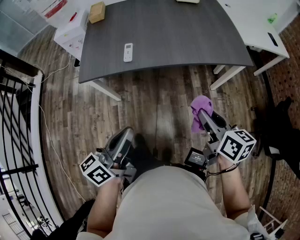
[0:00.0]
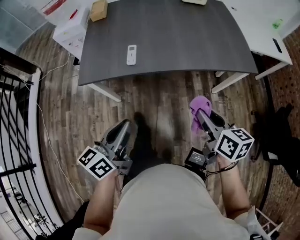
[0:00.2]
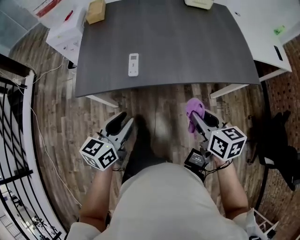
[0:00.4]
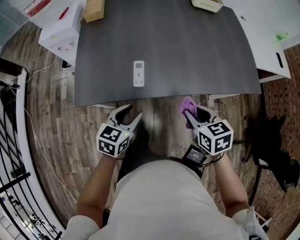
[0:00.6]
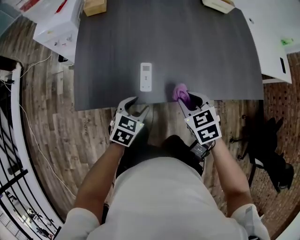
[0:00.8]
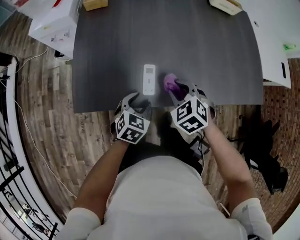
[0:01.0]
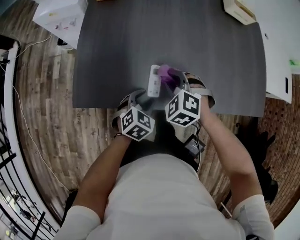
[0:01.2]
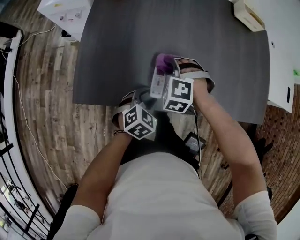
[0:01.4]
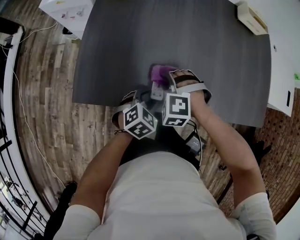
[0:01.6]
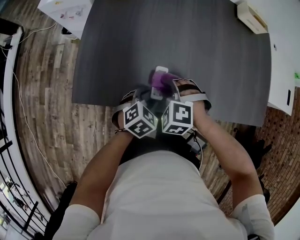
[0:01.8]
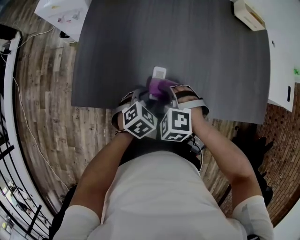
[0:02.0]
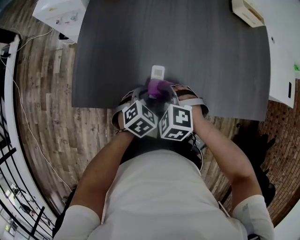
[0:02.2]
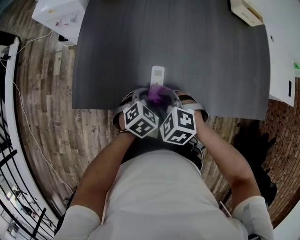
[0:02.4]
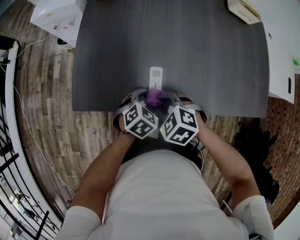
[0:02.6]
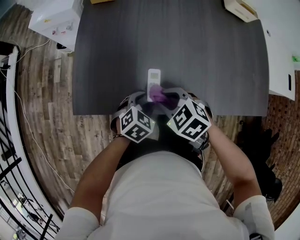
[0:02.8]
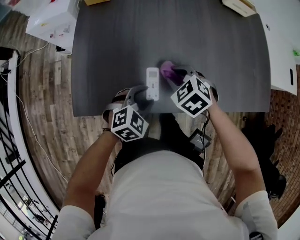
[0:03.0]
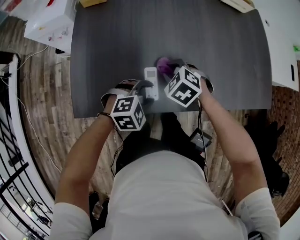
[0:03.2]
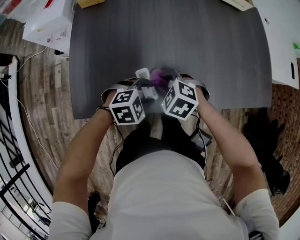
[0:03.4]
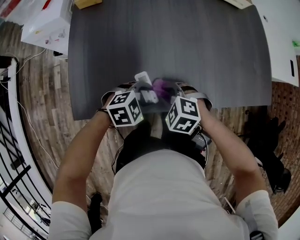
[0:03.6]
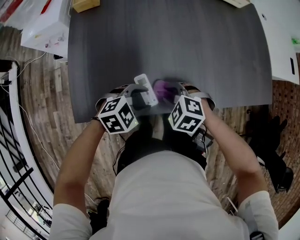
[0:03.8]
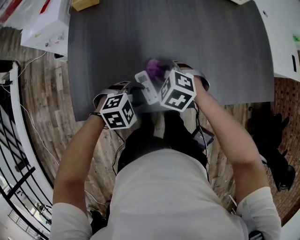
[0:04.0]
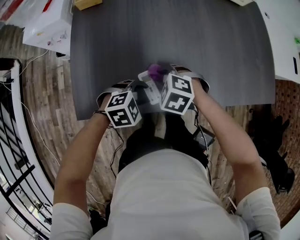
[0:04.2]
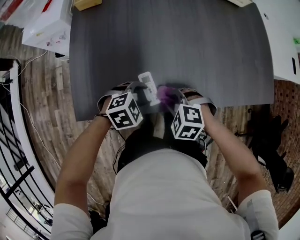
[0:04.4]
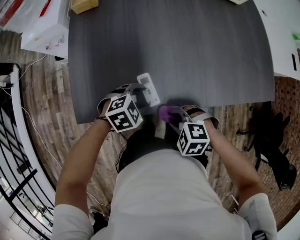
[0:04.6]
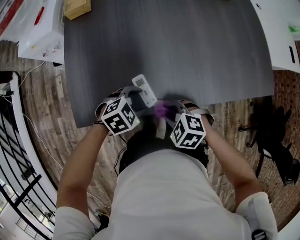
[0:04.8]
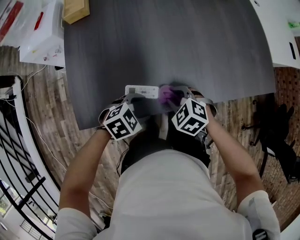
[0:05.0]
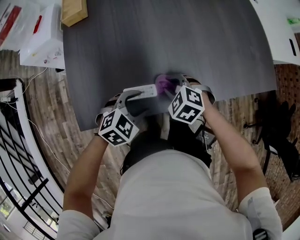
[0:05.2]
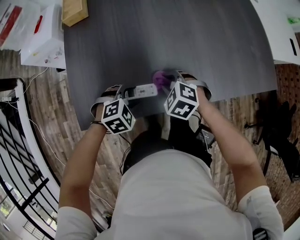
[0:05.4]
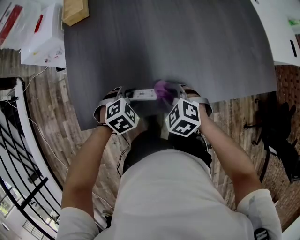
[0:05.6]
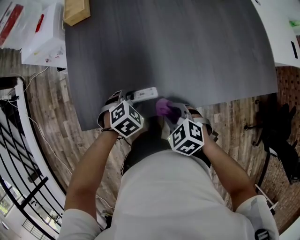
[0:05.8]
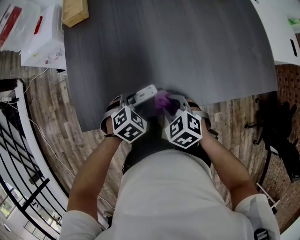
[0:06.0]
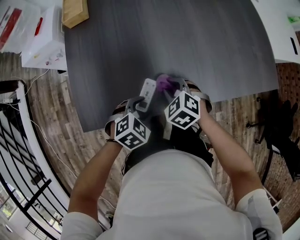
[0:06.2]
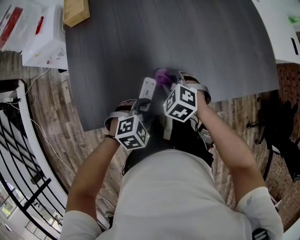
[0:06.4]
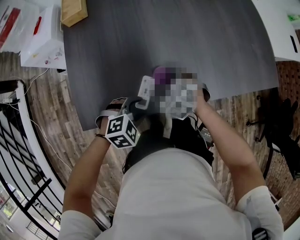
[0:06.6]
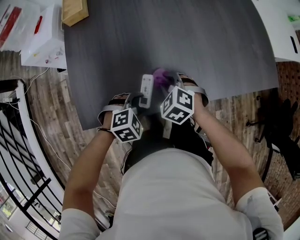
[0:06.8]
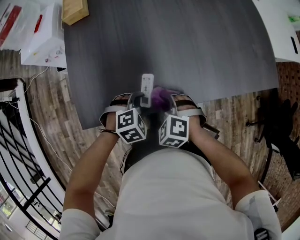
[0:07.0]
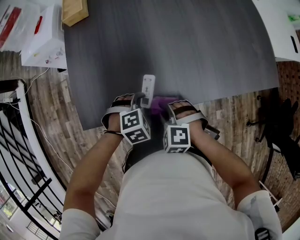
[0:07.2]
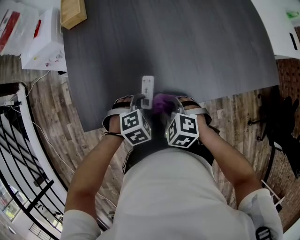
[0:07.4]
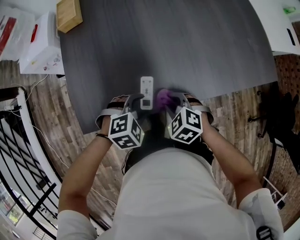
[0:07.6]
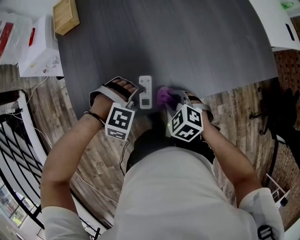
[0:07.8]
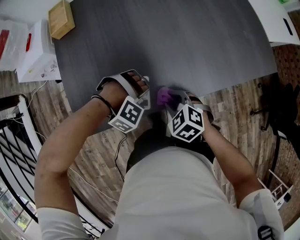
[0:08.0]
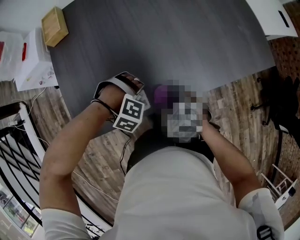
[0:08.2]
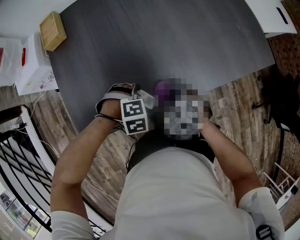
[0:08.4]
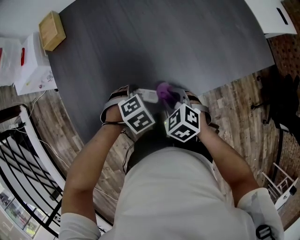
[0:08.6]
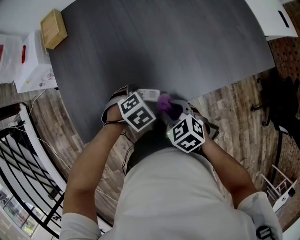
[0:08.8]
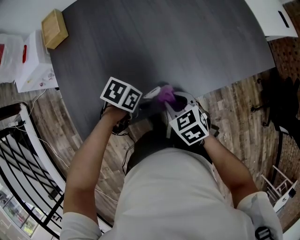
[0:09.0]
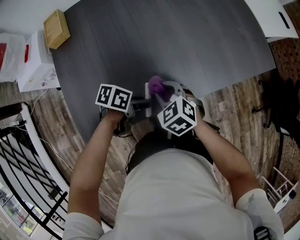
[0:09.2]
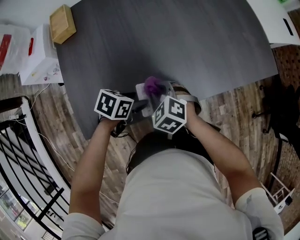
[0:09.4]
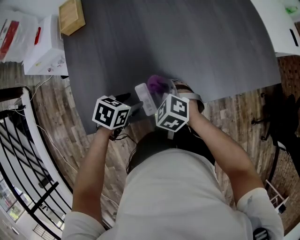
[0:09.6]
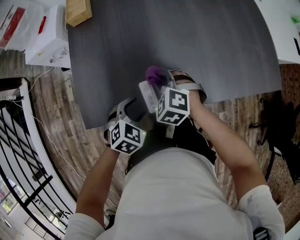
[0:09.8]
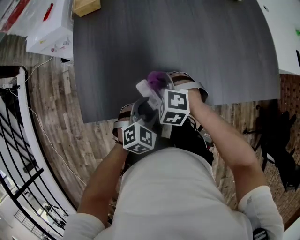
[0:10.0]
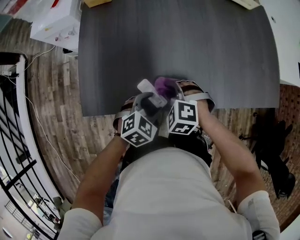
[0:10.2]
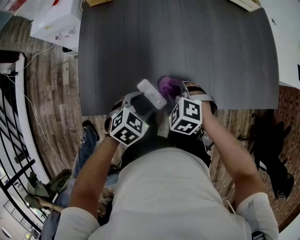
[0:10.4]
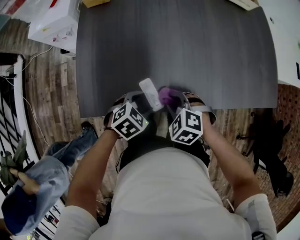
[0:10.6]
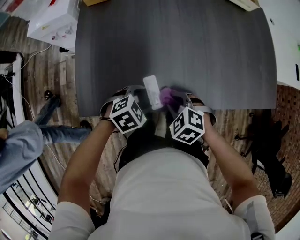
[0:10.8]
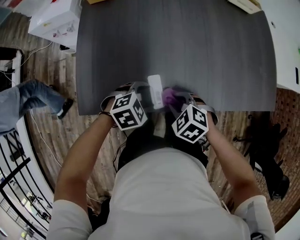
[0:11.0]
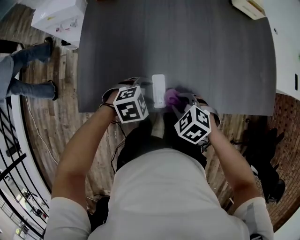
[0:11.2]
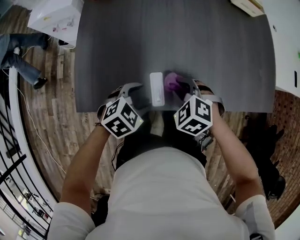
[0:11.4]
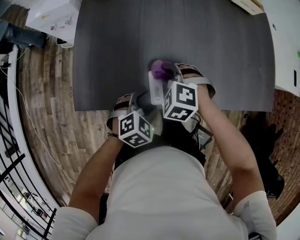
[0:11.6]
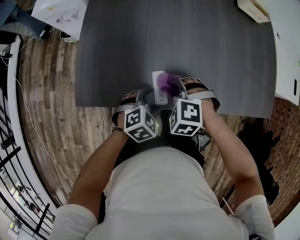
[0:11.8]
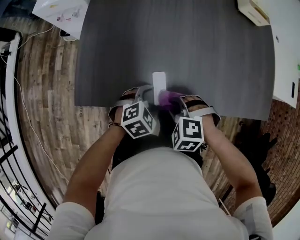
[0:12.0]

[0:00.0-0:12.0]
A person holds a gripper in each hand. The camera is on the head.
0:00.0 to 0:01.6: The right gripper shifts approximately 50 cm to the left, forward and downward, and rotates around the line of its fingers by about 110 degrees, counterclockwise from behind. The left gripper is displaced forward and downward by about 40 cm, points its fingers some 50 degrees further downward, and opens.
0:01.6 to 0:03.0: The right gripper heads to the right, covering some 5 cm, goes backward and returns, some 10 cm each way, and twists roughly 40 degrees clockwise, seen from behind, while the left gripper swivels some 20 degrees.
0:03.0 to 0:04.4: The right gripper ends up approximately 10 cm from where it was, and swivels roughly 20 degrees. The left gripper rotates approximately 20 degrees.
0:04.4 to 0:06.0: The left gripper rotates roughly 20 degrees. The right gripper rotates about 30 degrees.
0:06.0 to 0:07.6: The right gripper goes forward and backward, approximately 15 cm each way, reversing 2 times; the left gripper moves roughly 5 cm, and changes its angle by approximately 30 degrees.
0:07.6 to 0:09.0: The right gripper changes place by some 5 cm, and rotates some 30 degrees, while the left gripper changes place by about 5 cm, and rolls counterclockwise, seen from behind, by roughly 50 degrees.
0:09.0 to 0:10.4: The right gripper shifts by roughly 10 cm, and twists approximately 50 degrees counterclockwise, seen from behind; the left gripper shifts by about 10 cm, and rotates some 40 degrees.
0:10.4 to 0:12.0: The right gripper moves roughly 5 cm, and turns by approximately 20 degrees.

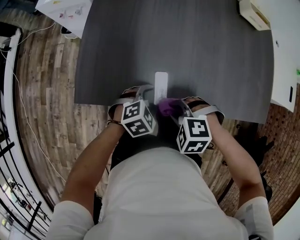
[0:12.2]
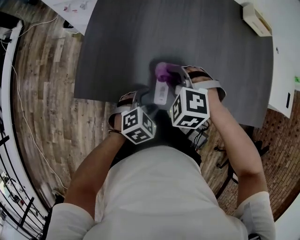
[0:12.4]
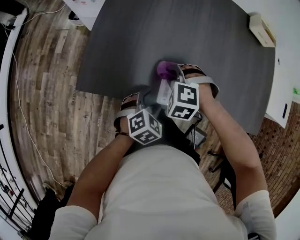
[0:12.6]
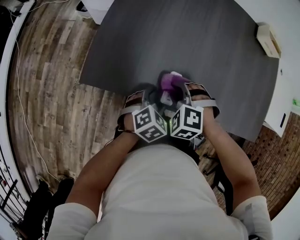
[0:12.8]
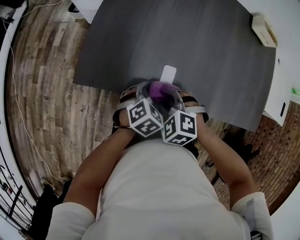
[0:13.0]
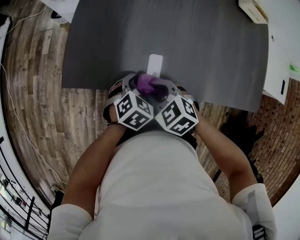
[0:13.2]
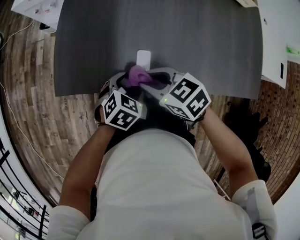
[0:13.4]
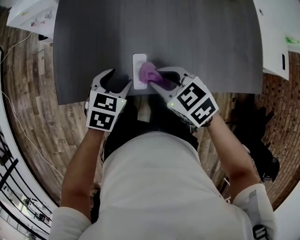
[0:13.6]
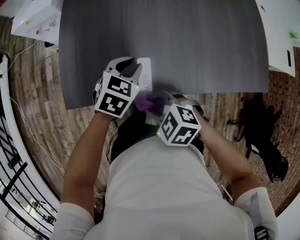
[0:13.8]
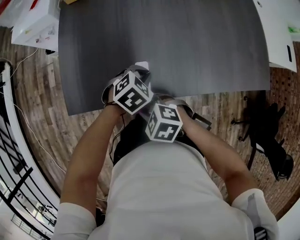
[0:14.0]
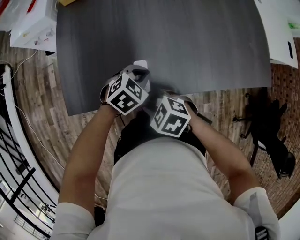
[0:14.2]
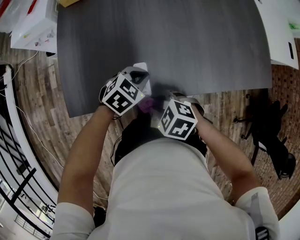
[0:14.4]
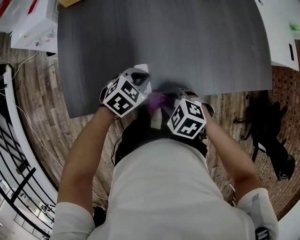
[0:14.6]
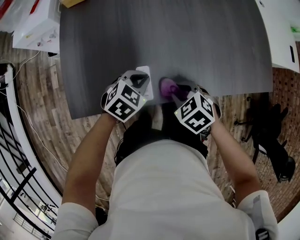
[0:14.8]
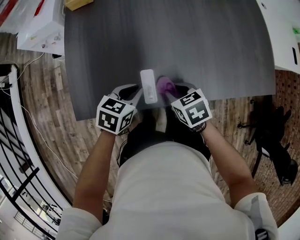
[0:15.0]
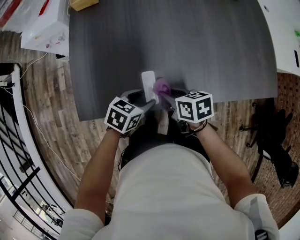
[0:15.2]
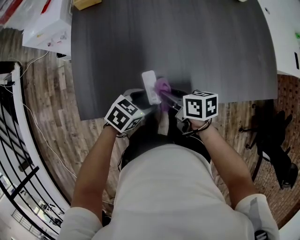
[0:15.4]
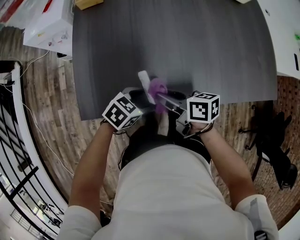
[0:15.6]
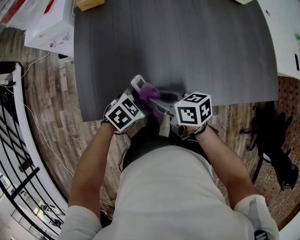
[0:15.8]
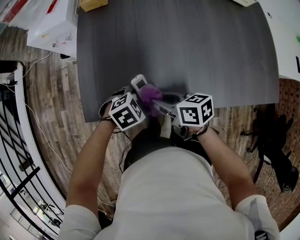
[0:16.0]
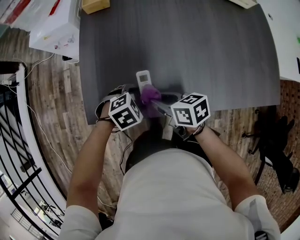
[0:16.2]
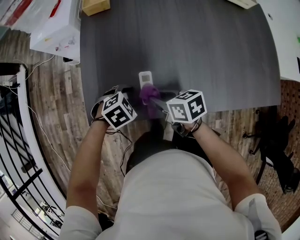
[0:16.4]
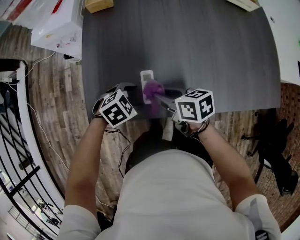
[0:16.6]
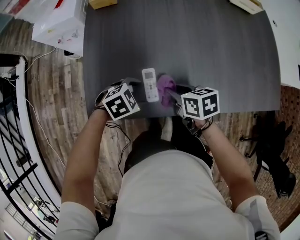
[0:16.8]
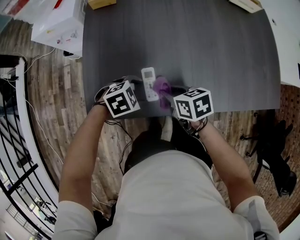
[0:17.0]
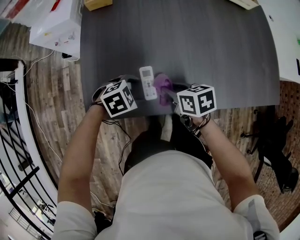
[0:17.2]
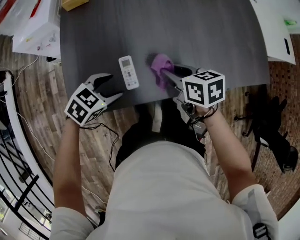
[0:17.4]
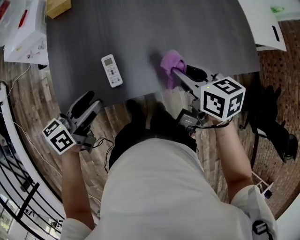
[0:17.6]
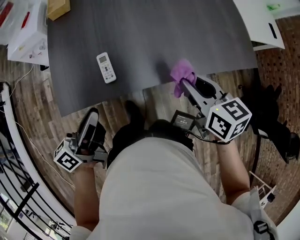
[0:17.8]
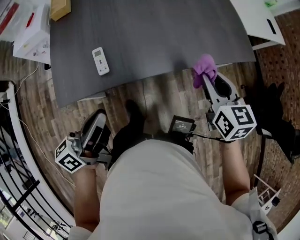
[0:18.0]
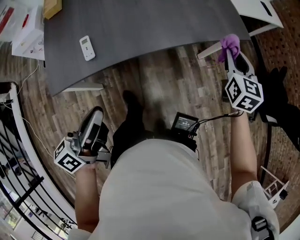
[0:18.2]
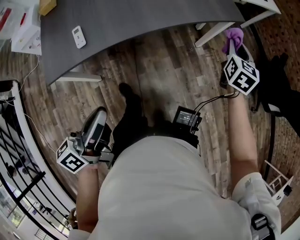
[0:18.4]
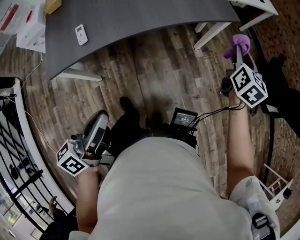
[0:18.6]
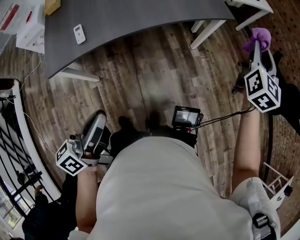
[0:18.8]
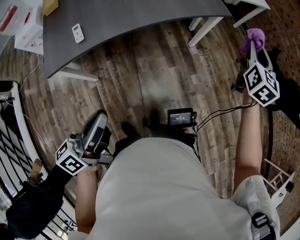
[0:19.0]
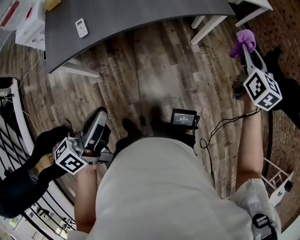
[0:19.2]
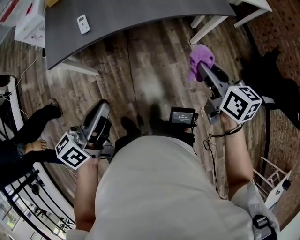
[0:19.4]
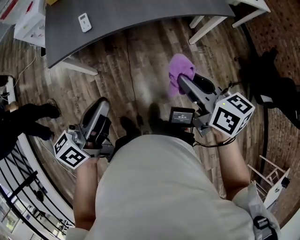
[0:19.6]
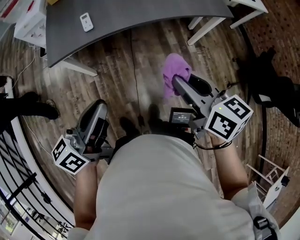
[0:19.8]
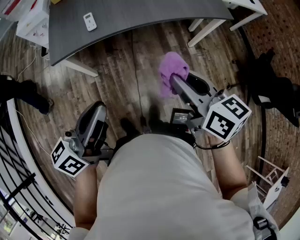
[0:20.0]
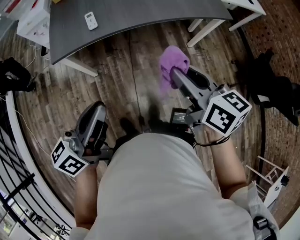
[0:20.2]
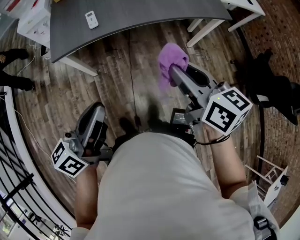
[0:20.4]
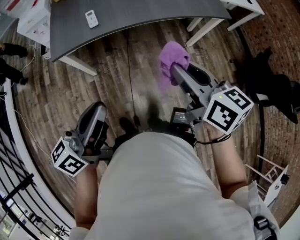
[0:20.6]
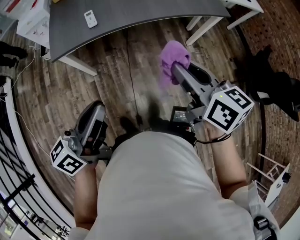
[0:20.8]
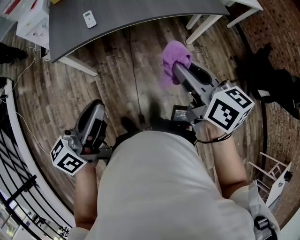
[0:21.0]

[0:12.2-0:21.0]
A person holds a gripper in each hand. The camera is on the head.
0:12.2 to 0:13.6: The left gripper ends up roughly 10 cm from where it was, and swivels some 30 degrees. The right gripper rolls clockwise, seen from behind, by some 40 degrees.
0:13.6 to 0:15.2: The left gripper rotates roughly 20 degrees, and closes, then opens again. Meanwhile the right gripper is displaced downward by approximately 10 cm, and rolls clockwise, seen from behind, by some 50 degrees.
0:15.2 to 0:16.6: The right gripper moves some 10 cm; the left gripper moves roughly 10 cm, and turns by some 40 degrees.
0:16.6 to 0:18.0: The right gripper shifts by roughly 40 cm, and turns by roughly 50 degrees, while the left gripper moves upward, roughly 25 cm, angles its fingers upward, by some 70 degrees, and closes up.
0:18.0 to 0:19.6: The left gripper moves roughly 20 cm; the right gripper moves up and down over some 15 cm, changing direction 2 times, and changes its angle by roughly 30 degrees.
0:19.6 to 0:21.0: The left gripper moves about 5 cm. The right gripper shifts by approximately 5 cm.

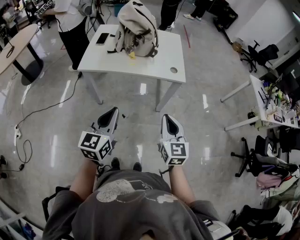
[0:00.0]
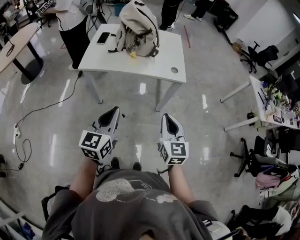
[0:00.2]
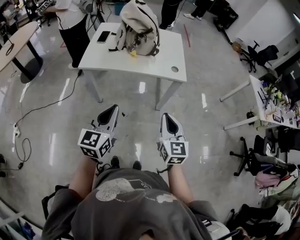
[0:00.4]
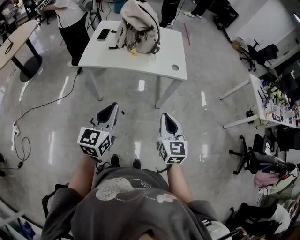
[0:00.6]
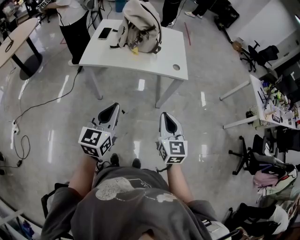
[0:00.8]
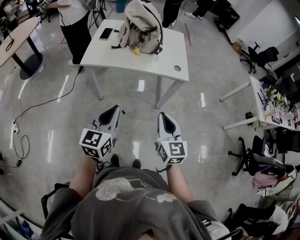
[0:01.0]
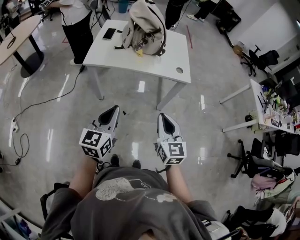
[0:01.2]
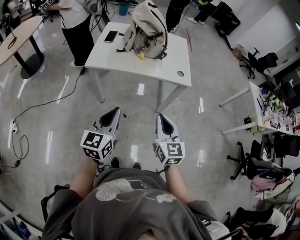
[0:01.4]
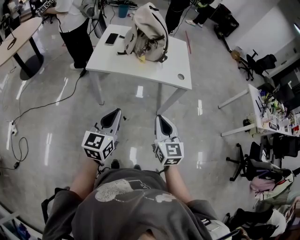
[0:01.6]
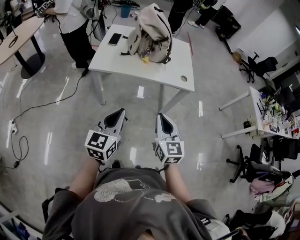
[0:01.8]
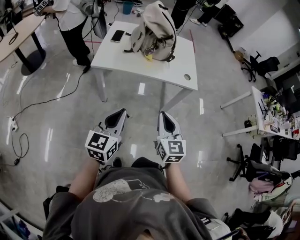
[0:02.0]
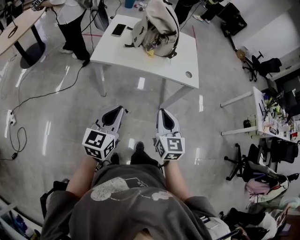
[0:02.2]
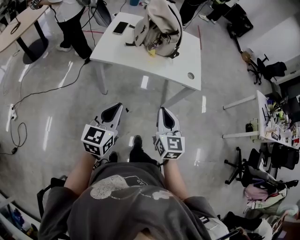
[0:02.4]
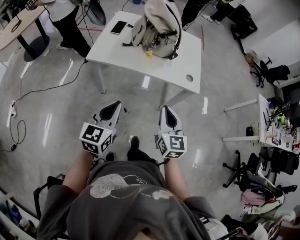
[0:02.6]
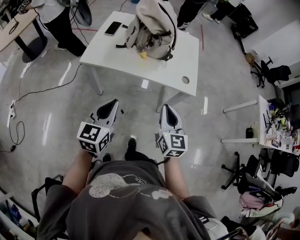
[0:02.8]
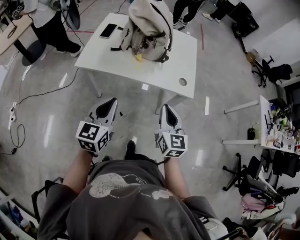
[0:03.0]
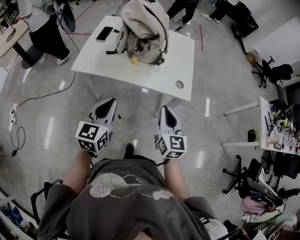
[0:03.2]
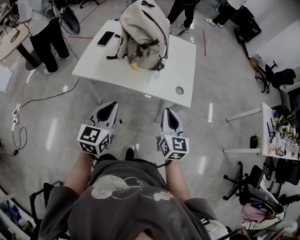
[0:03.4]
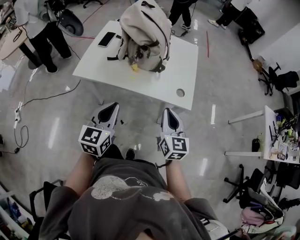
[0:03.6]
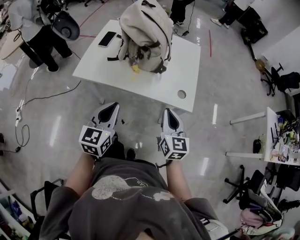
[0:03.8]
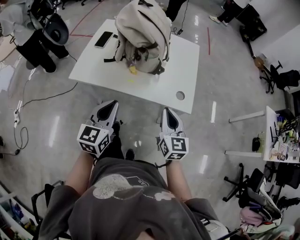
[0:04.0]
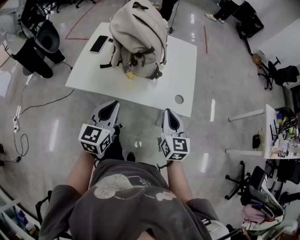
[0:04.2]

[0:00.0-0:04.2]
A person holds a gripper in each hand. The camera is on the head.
0:00.0 to 0:01.4: The two grippers go about 10 cm to the left.
0:01.4 to 0:02.8: The grippers both shift forward by approximately 15 cm.
0:02.8 to 0:04.2: Both grippers move forward and to the right, approximately 20 cm.
